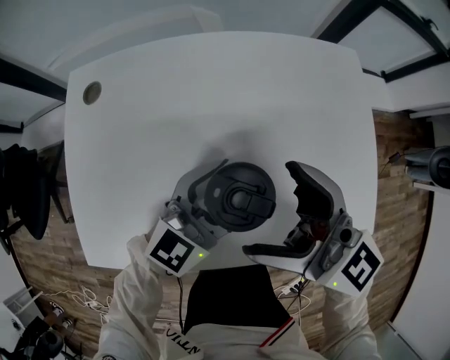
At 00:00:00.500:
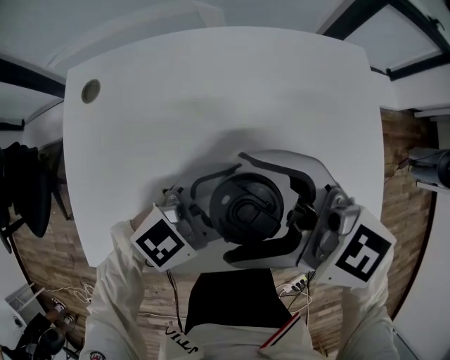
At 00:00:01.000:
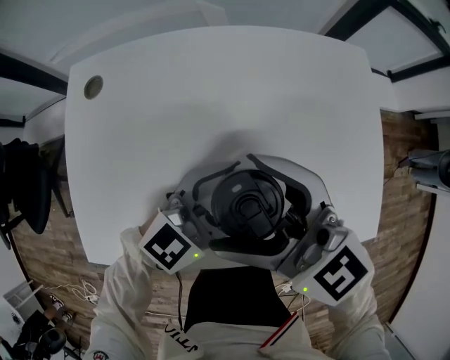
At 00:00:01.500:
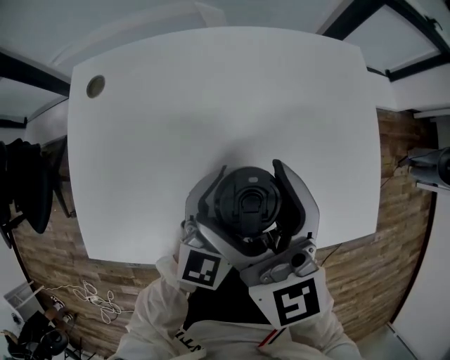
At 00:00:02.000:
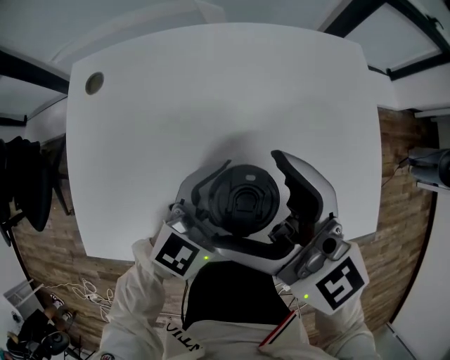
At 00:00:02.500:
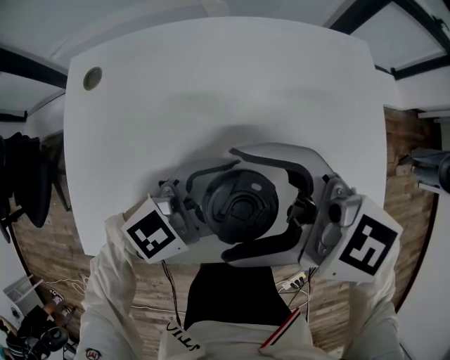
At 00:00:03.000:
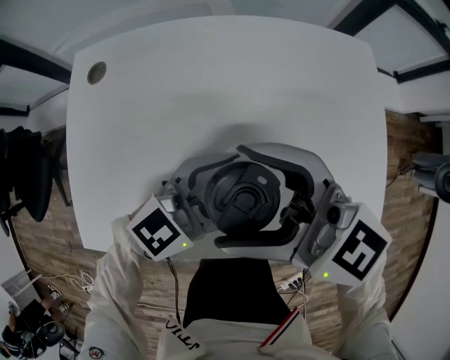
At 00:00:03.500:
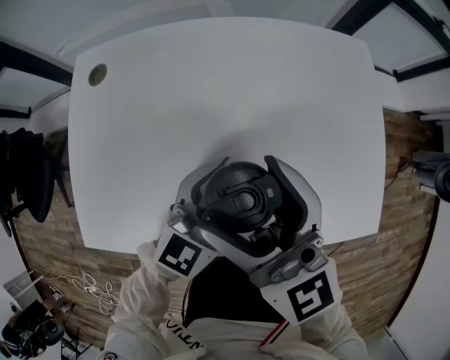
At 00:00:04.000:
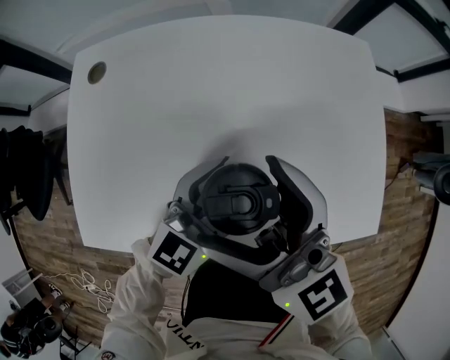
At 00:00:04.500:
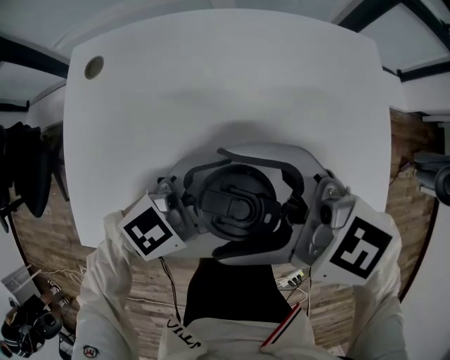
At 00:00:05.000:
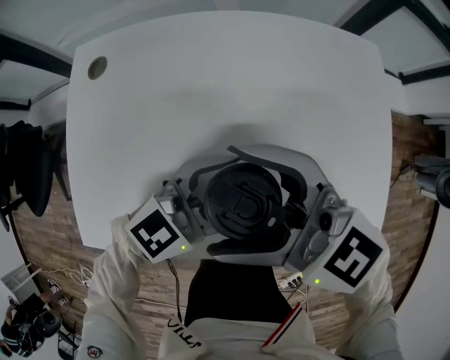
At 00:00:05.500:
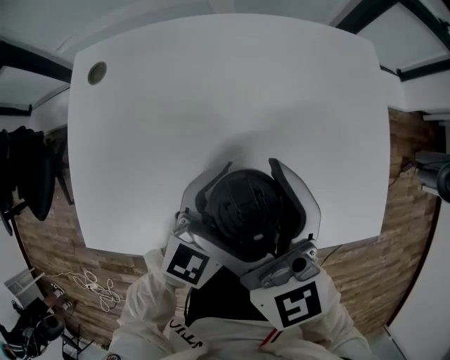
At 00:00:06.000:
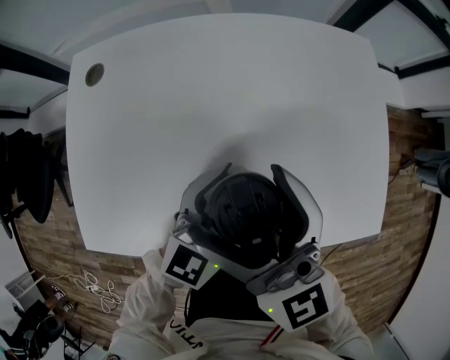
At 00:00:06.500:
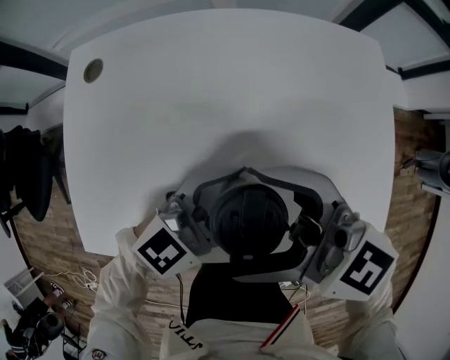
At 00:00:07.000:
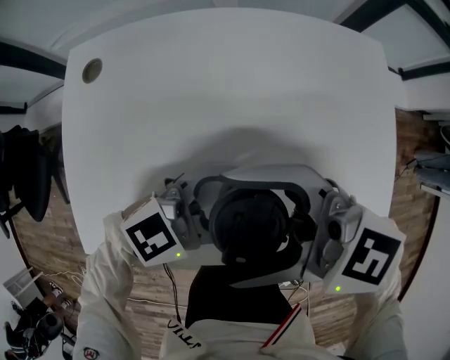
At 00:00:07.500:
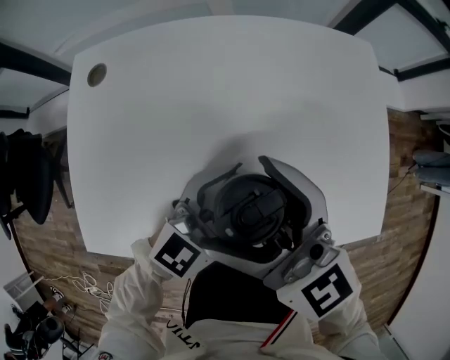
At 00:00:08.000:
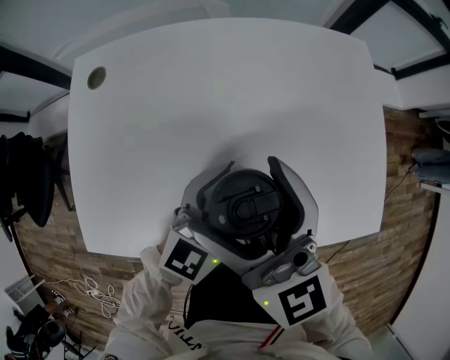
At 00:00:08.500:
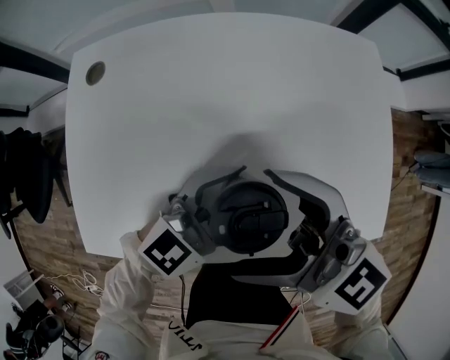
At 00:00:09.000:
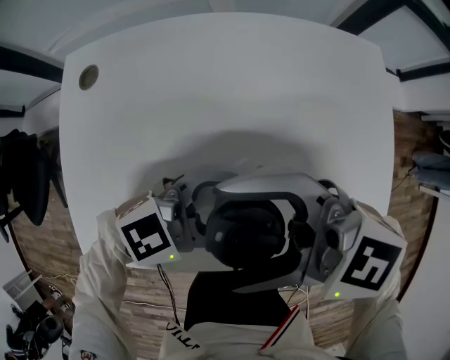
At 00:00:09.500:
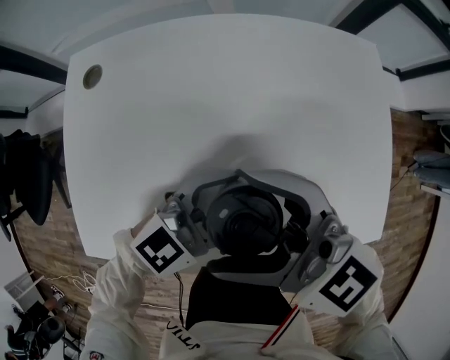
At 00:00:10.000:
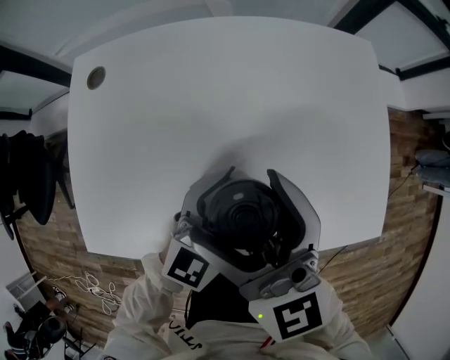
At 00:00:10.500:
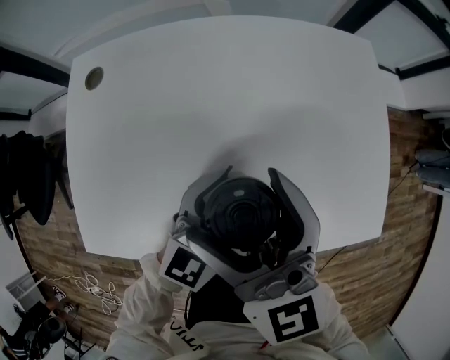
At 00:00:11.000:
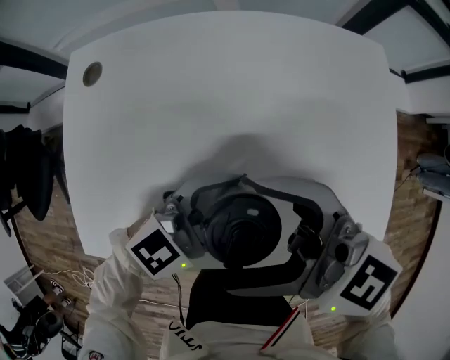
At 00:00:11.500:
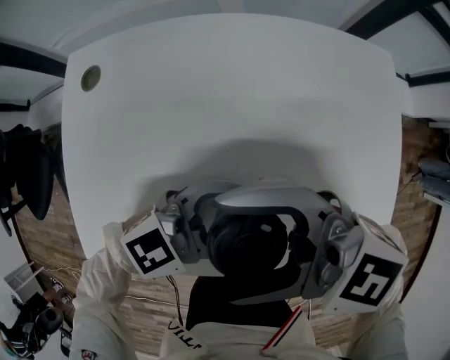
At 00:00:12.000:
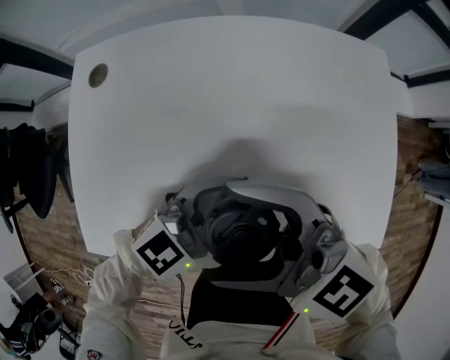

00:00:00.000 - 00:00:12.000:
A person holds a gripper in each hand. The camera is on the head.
00:00:10.000 - 00:00:12.000: The right gripper rotates some 40 degrees. Meanwhile the left gripper swivels roughly 20 degrees.

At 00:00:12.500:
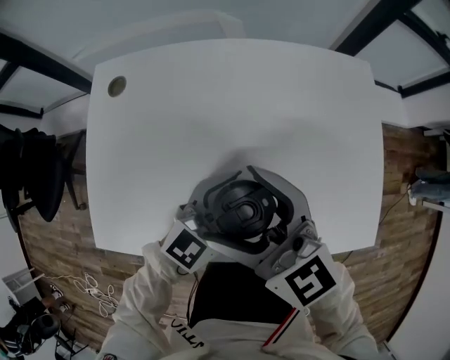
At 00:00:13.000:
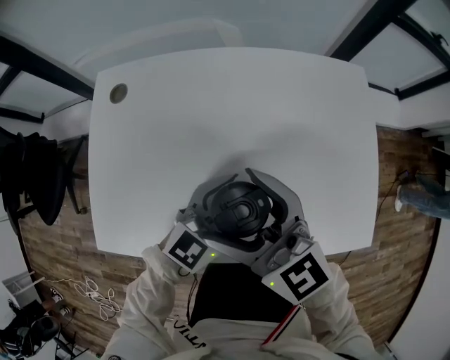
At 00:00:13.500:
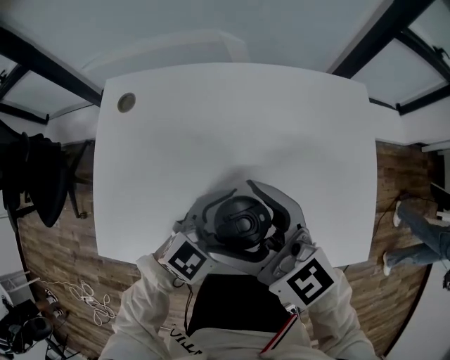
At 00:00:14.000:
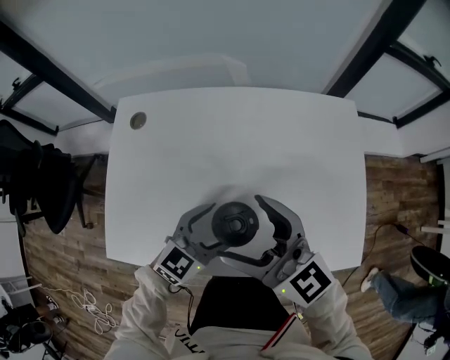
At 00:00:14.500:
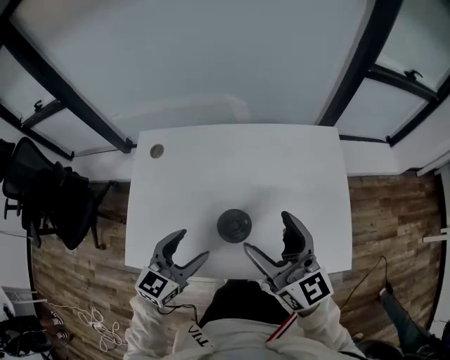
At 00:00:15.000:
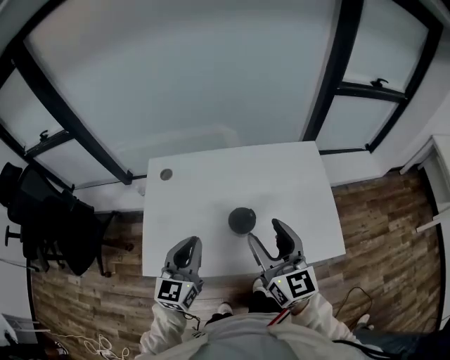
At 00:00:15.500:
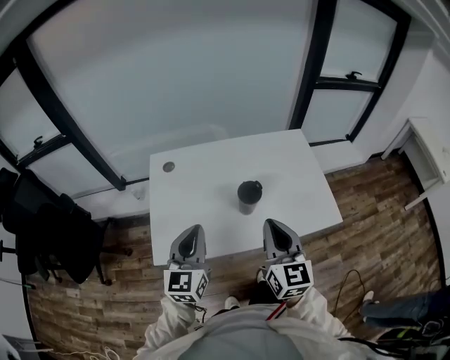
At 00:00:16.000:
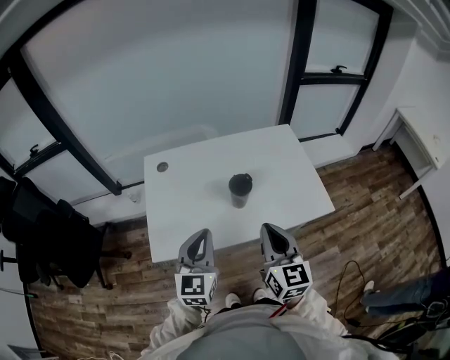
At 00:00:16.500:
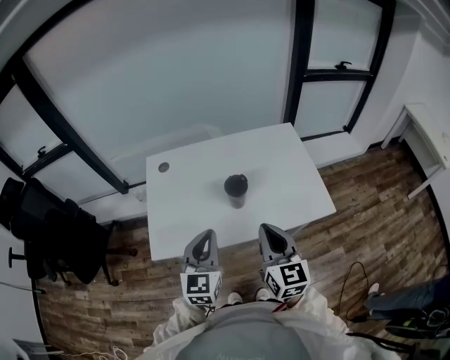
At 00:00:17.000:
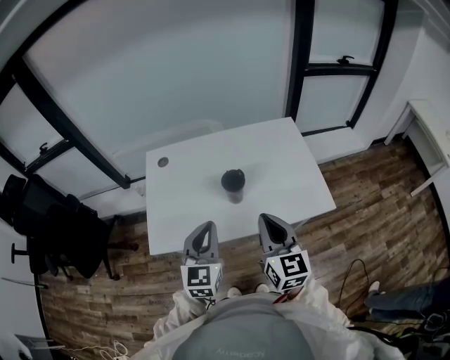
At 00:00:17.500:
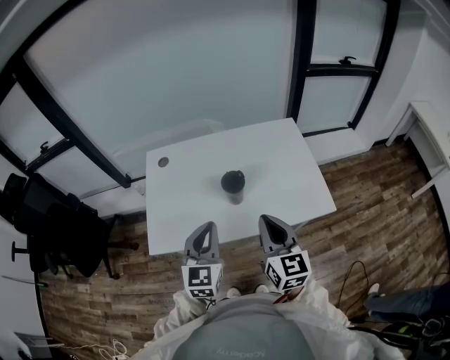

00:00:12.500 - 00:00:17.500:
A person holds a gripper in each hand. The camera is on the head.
00:00:12.500 - 00:00:15.000: The left gripper is displaced upward, to the left and backward by some 30 cm, changes its angle by about 40 degrees, and closes up; the right gripper is displaced upward, backward and to the right by some 20 cm, and rotates roughly 30 degrees.
00:00:15.000 - 00:00:17.500: The left gripper moves backward and to the right, approximately 15 cm, while the right gripper is displaced backward by approximately 15 cm, and closes its fingers.

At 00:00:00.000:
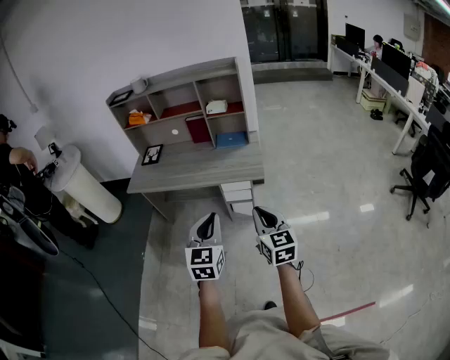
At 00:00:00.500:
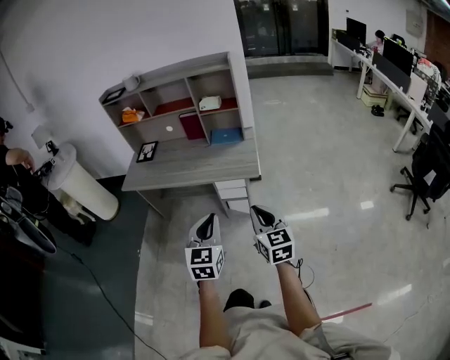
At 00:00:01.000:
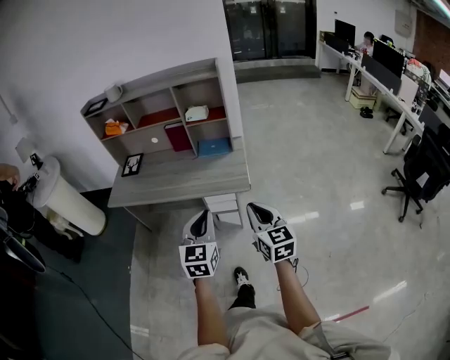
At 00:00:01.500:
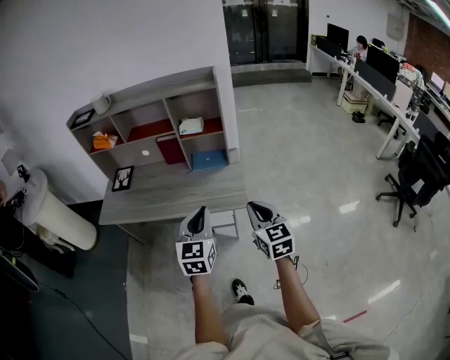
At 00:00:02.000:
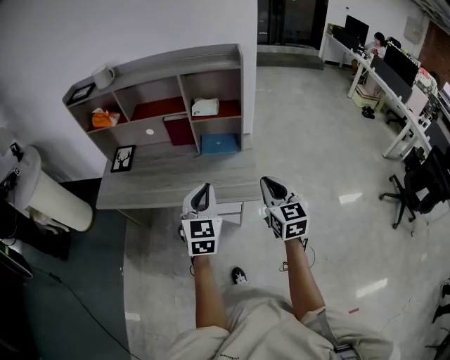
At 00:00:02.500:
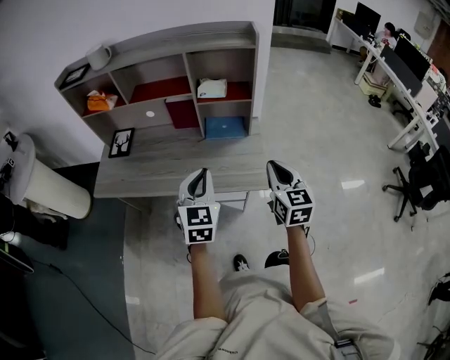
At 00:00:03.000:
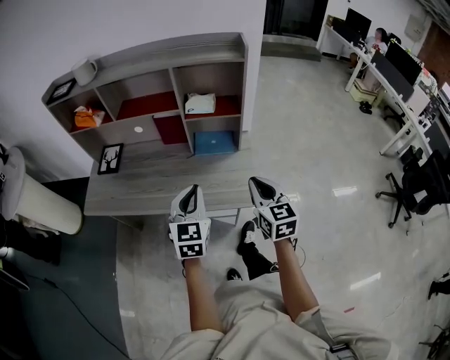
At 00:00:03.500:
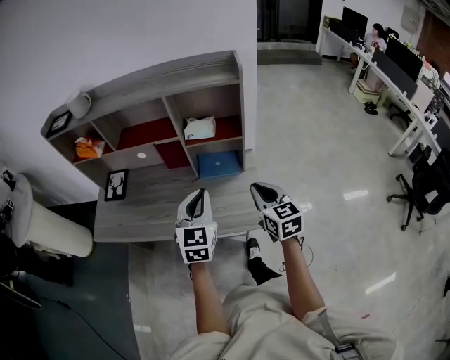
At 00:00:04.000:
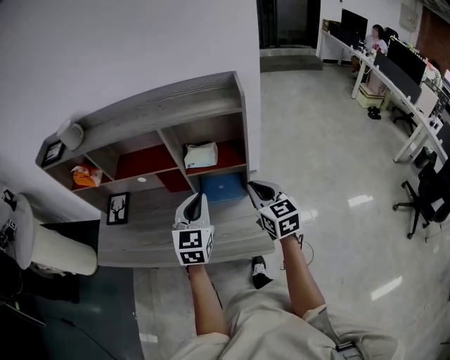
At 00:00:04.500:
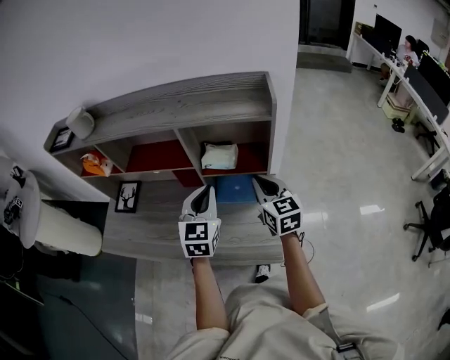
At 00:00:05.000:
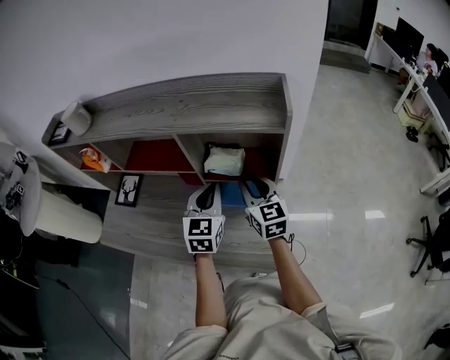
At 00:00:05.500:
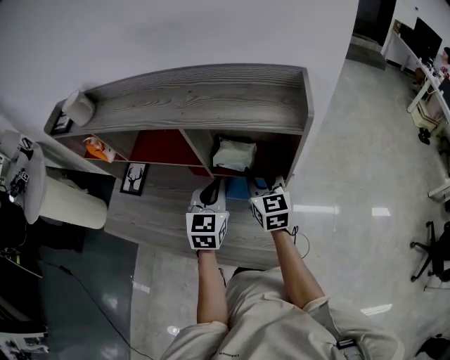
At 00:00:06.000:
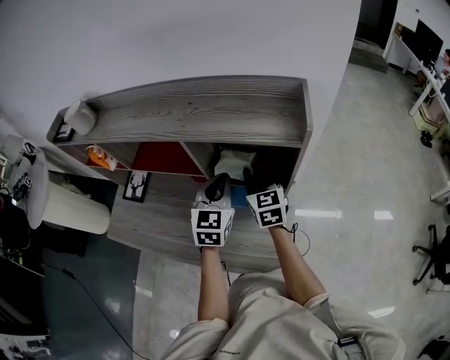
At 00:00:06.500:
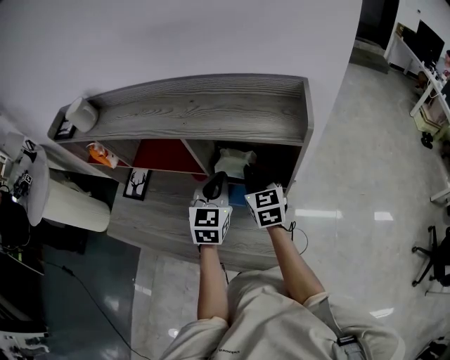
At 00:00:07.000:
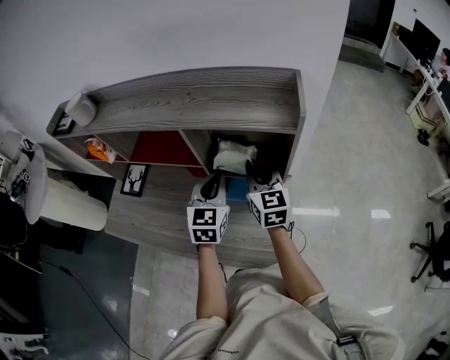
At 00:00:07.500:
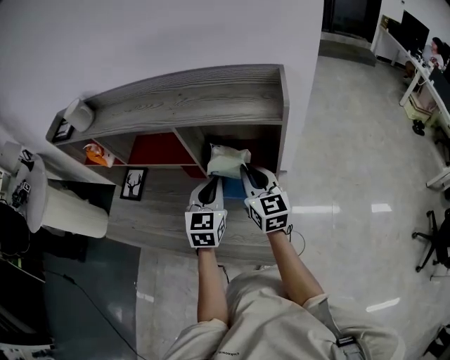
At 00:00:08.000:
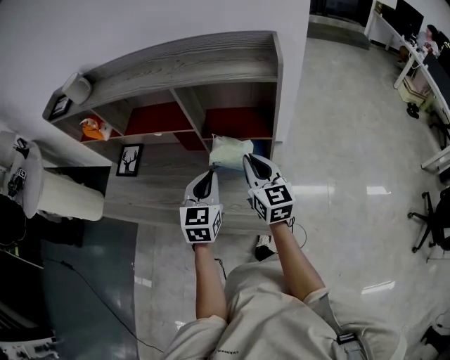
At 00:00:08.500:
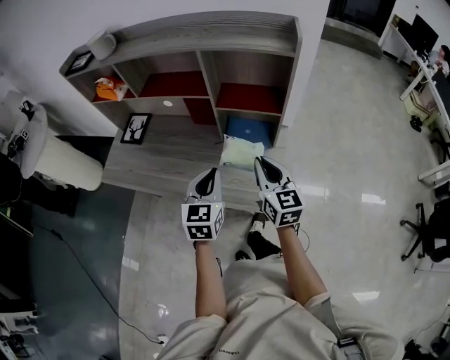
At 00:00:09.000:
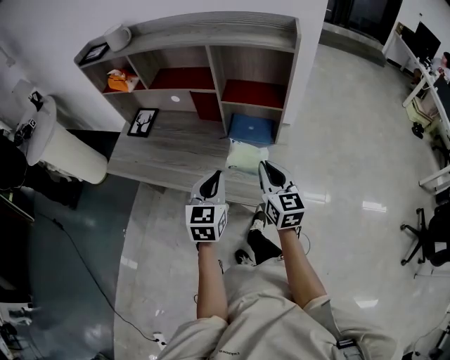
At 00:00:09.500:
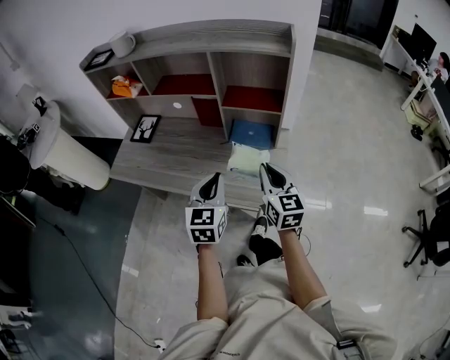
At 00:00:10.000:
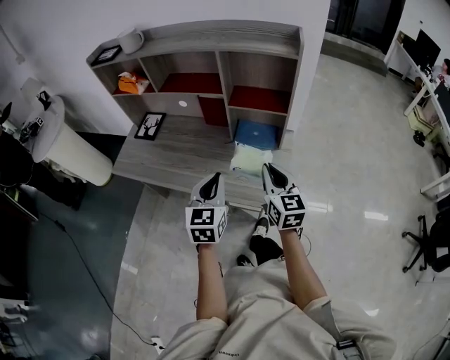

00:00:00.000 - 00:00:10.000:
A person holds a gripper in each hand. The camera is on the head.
00:00:00.000 - 00:00:02.000: The grippers both shift forward by roughly 30 cm.
00:00:02.000 - 00:00:04.000: The grippers both shift forward by approximately 30 cm.
00:00:04.000 - 00:00:06.000: Both grippers travel together forward, some 20 cm.
00:00:06.000 - 00:00:08.000: The two grippers go about 15 cm backward.
00:00:08.000 - 00:00:10.000: The grippers both shift backward by approximately 15 cm.
